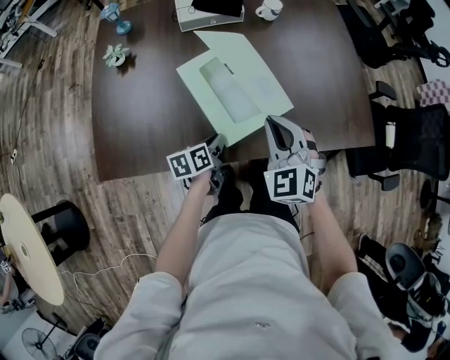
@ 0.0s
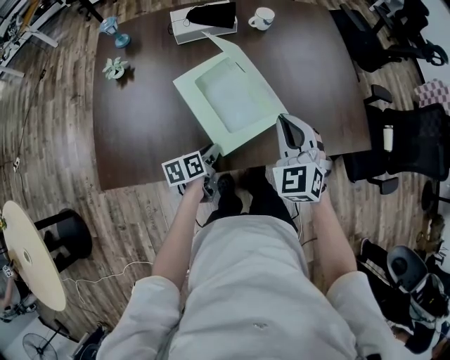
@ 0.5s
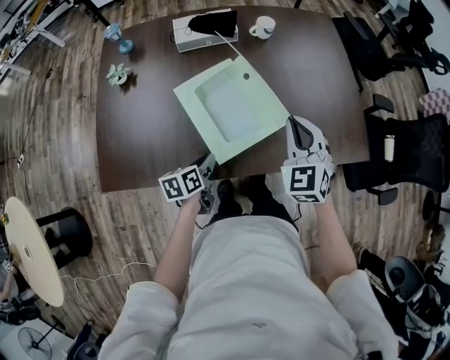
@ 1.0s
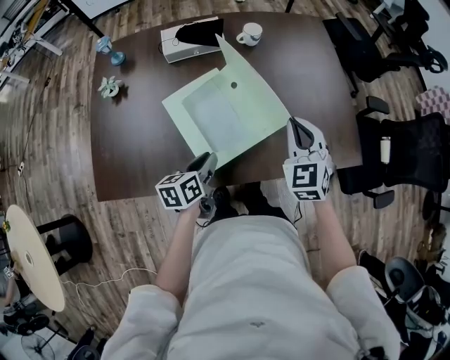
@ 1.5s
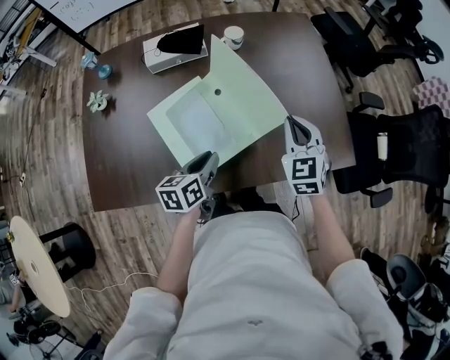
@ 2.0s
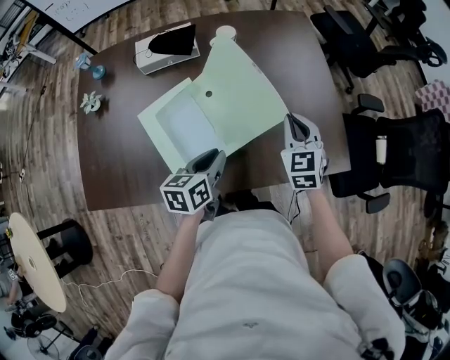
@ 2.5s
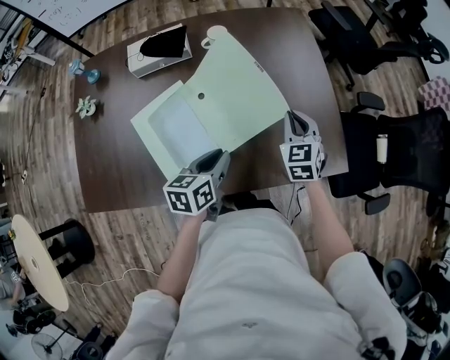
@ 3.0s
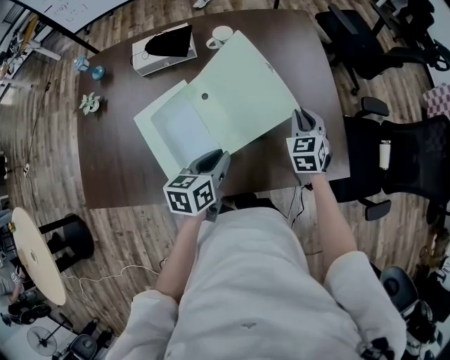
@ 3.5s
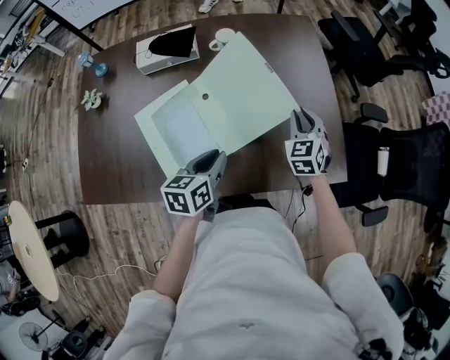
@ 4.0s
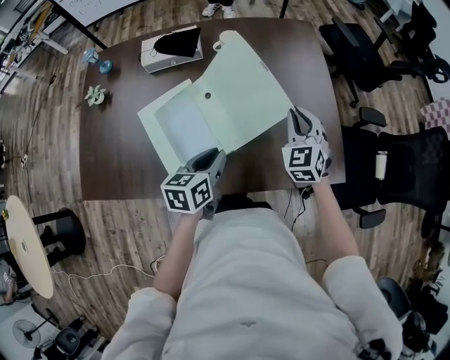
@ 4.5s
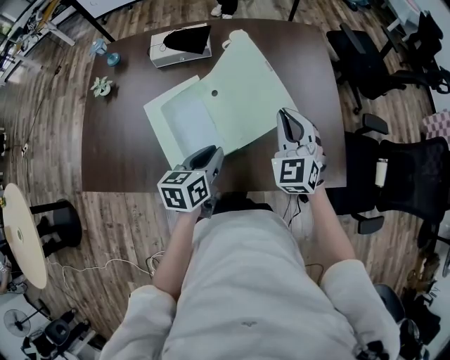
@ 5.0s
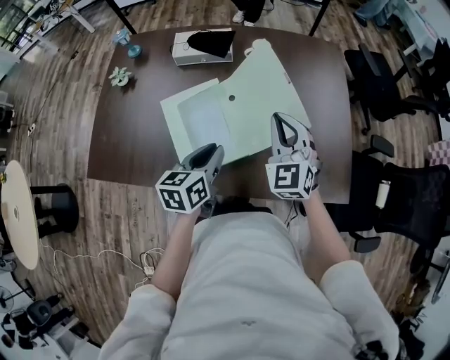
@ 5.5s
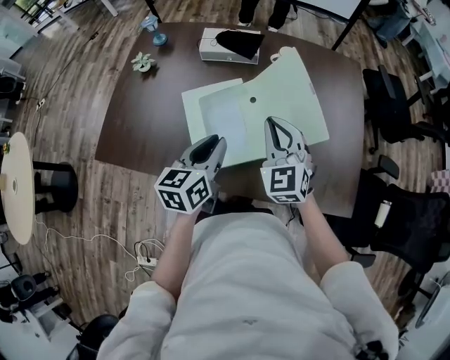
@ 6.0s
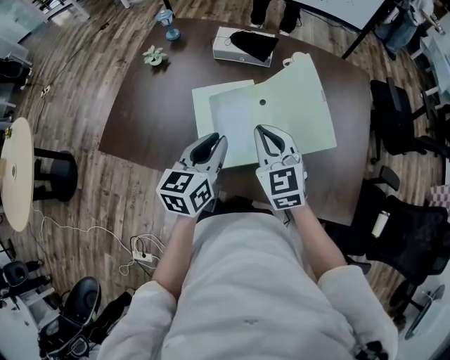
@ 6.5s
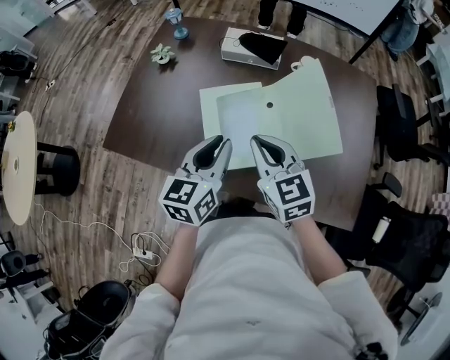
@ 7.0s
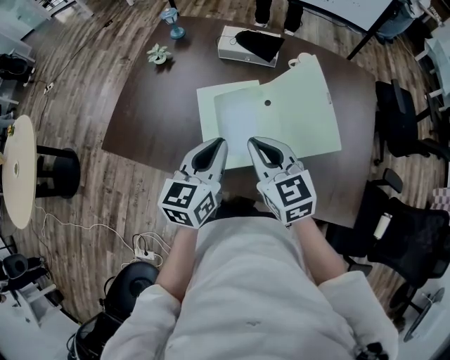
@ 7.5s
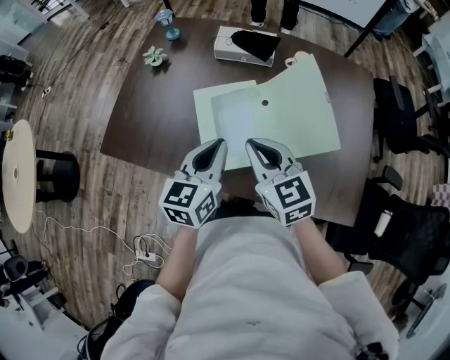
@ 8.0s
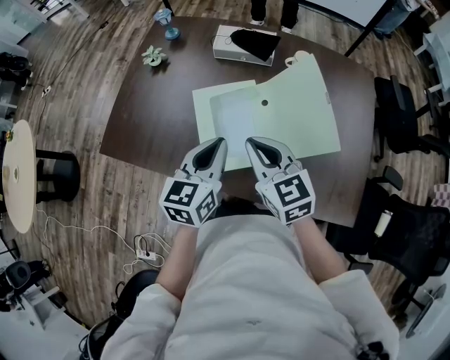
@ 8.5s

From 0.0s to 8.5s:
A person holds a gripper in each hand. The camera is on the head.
From 0.0s to 2.0s: The right gripper heads to the right and forward, covering some 25 cm, and turns by roughly 20 degrees. Meanwhile the left gripper heads upward, to the right and forward, covering some 15 cm.
From 2.0s to 4.0s: The right gripper is displaced forward, to the right and downward by roughly 15 cm; the left gripper shifts about 10 cm to the right.
From 4.0s to 6.5s: The right gripper moves about 30 cm, and rotates about 40 degrees. The left gripper changes place by about 15 cm, and turns by about 30 degrees.
From 6.5s to 8.5s: The grippers move only a little.

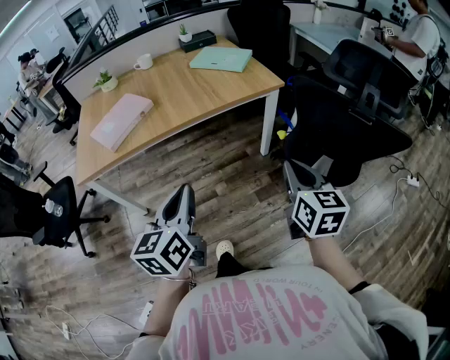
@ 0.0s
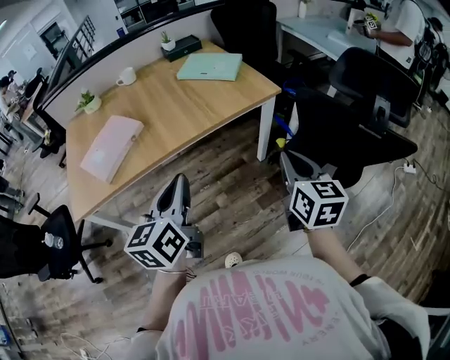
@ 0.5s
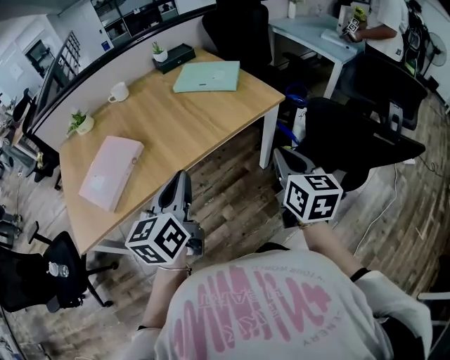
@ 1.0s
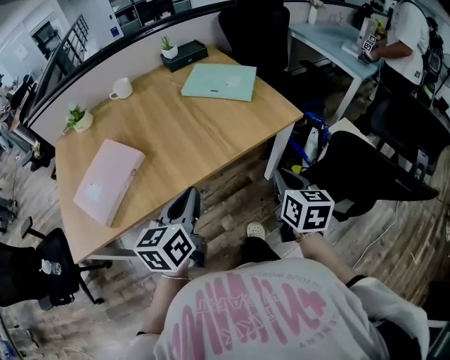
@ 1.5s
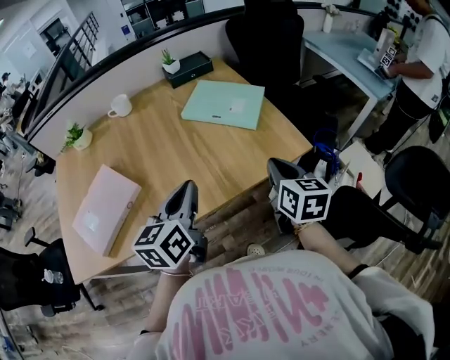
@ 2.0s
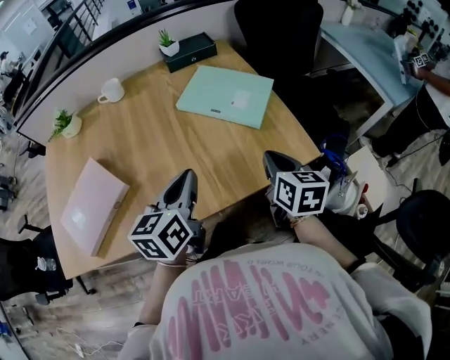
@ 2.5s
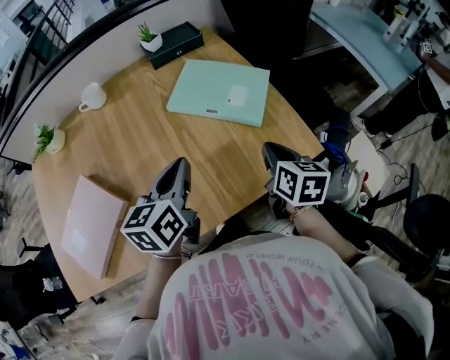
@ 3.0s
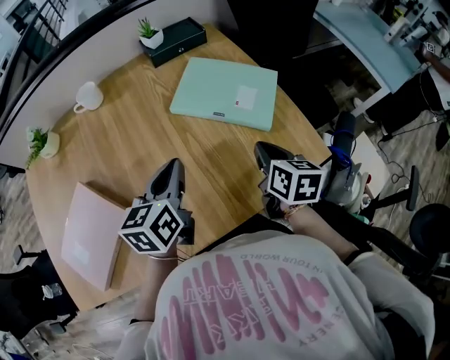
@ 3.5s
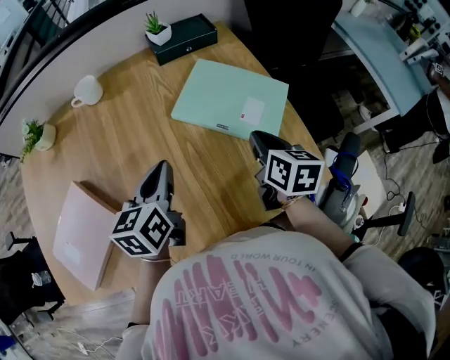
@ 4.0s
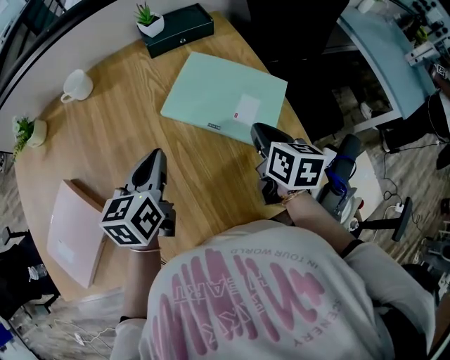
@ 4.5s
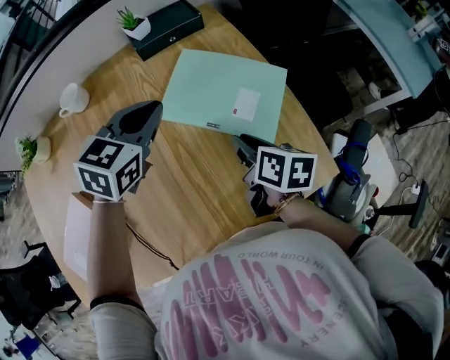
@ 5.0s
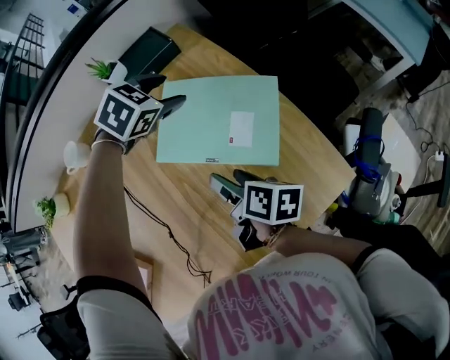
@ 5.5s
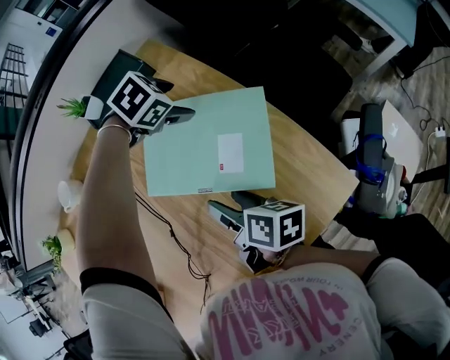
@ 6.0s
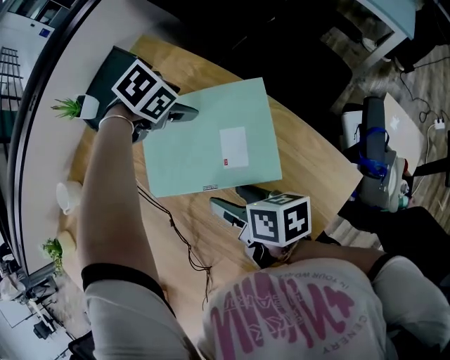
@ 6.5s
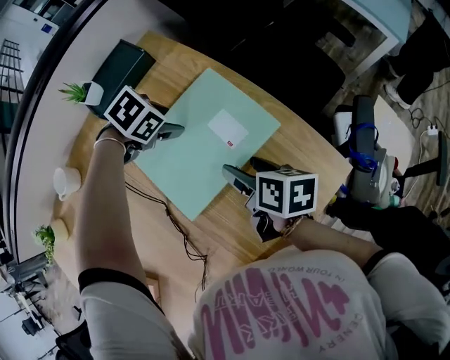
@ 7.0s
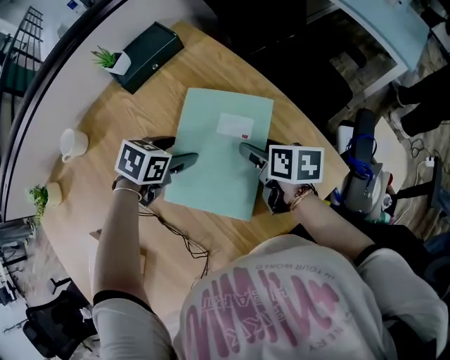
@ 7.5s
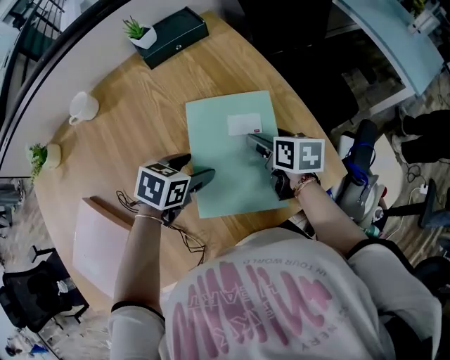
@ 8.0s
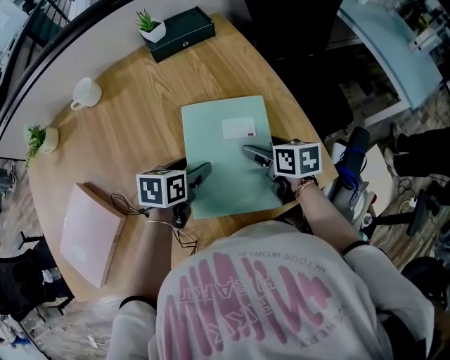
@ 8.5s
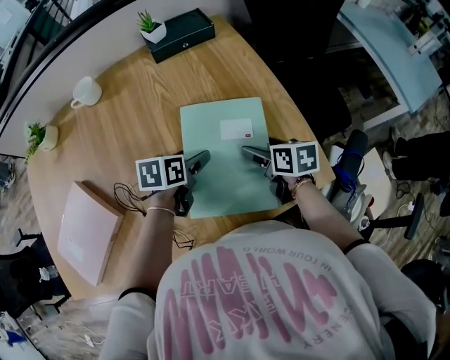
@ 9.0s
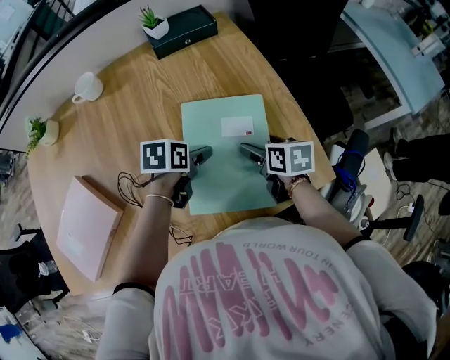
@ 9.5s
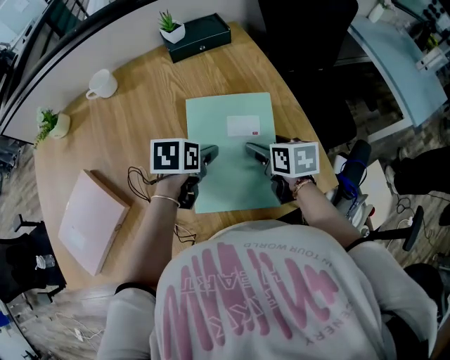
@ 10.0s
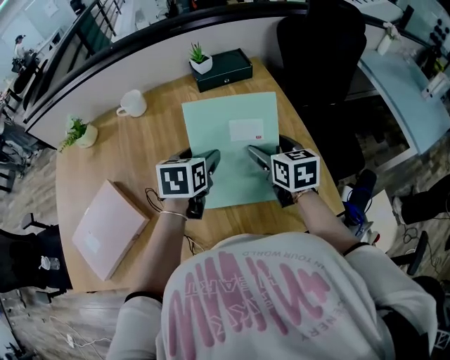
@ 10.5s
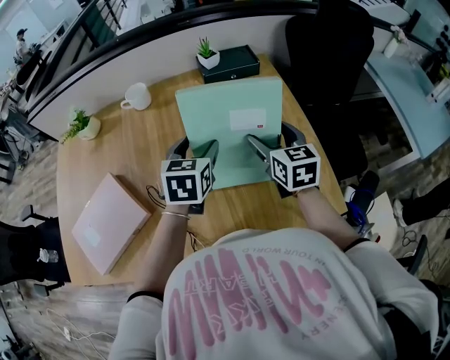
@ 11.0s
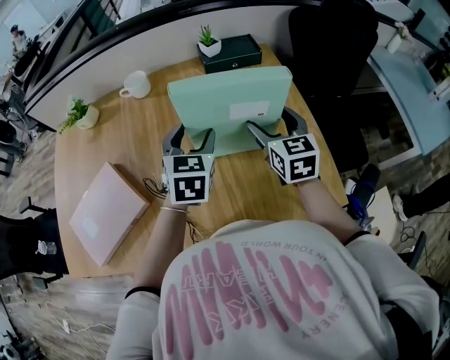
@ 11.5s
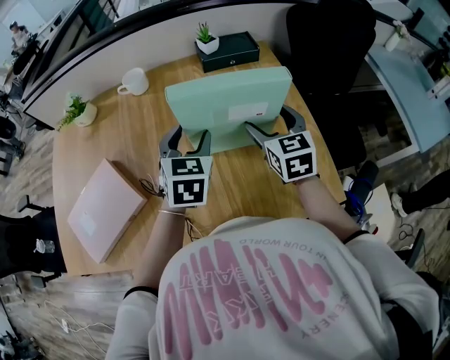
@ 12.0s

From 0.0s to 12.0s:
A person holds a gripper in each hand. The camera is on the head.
From 0.0s to 2.0s: The two grippers travel together, forward, some 50 cm.
From 2.0s to 4.0s: The two grippers go about 25 cm forward.
From 4.0s to 6.0s: The left gripper shifts by about 40 cm, tips its fingers downward by some 50 degrees, and opens. Meanwhile the right gripper goes roughly 10 cm downward, swivels approximately 40 degrees, and opens its fingers.
From 6.0s to 8.0s: The right gripper shifts by some 10 cm, and changes its angle by approximately 30 degrees. The left gripper shifts by about 30 cm, and twists about 40 degrees counterclockwise, seen from behind.
From 8.0s to 10.0s: The left gripper rotates roughly 30 degrees.
From 10.0s to 12.0s: The left gripper heads upward and to the left, covering some 15 cm, and turns by roughly 40 degrees, while the right gripper moves upward, to the left and forward, some 15 cm, and swivels approximately 40 degrees.

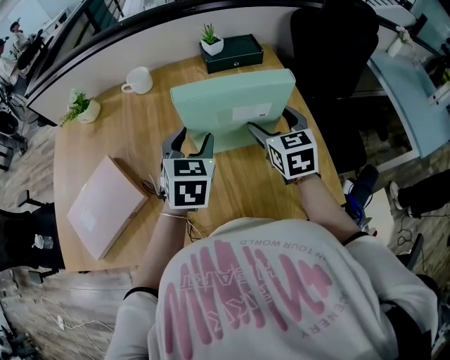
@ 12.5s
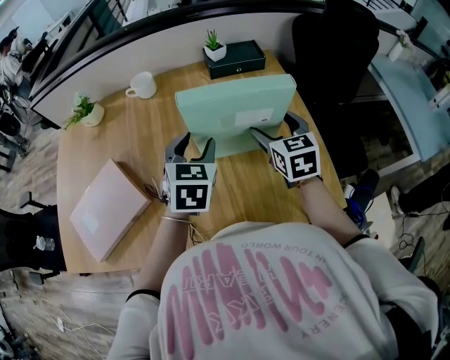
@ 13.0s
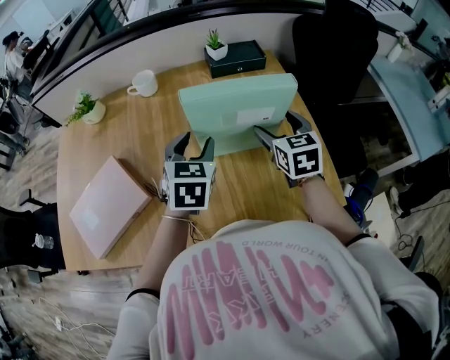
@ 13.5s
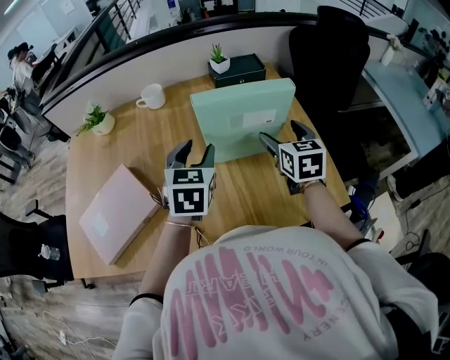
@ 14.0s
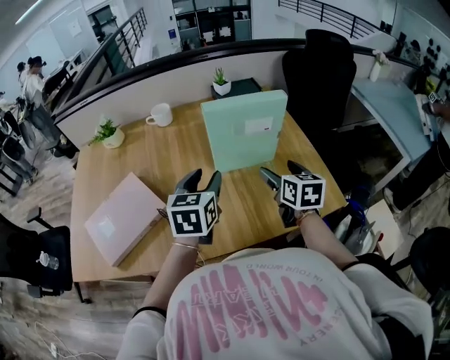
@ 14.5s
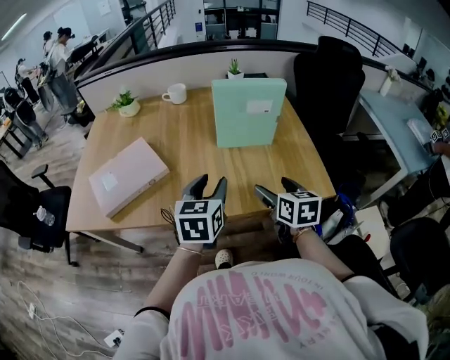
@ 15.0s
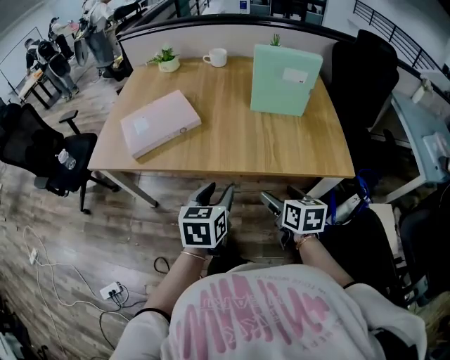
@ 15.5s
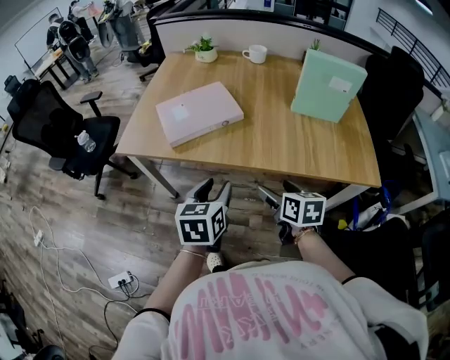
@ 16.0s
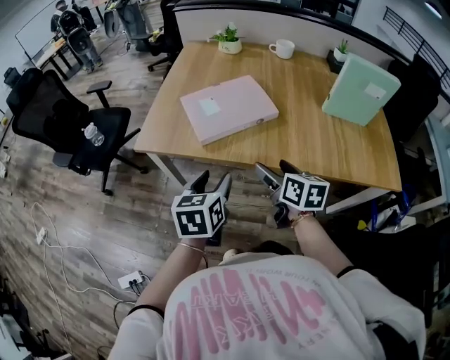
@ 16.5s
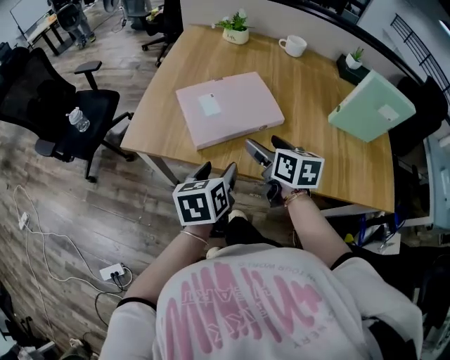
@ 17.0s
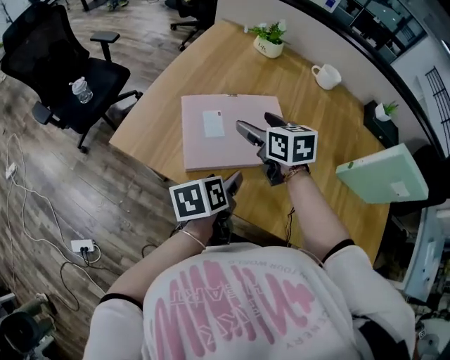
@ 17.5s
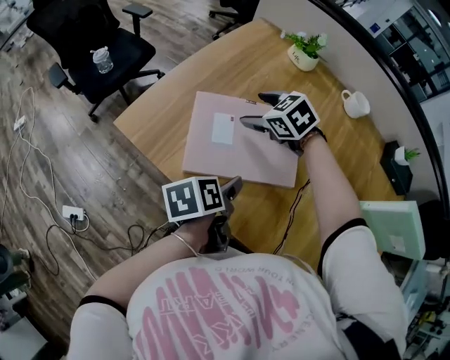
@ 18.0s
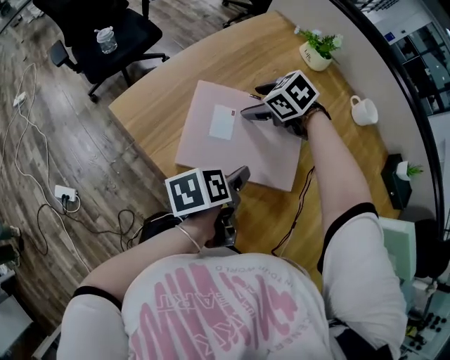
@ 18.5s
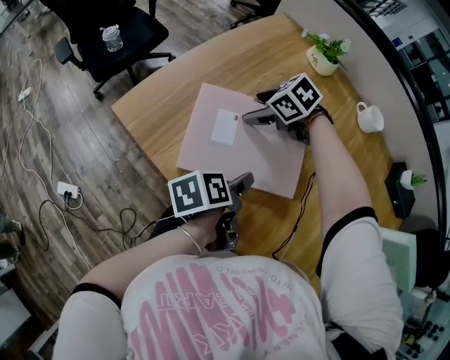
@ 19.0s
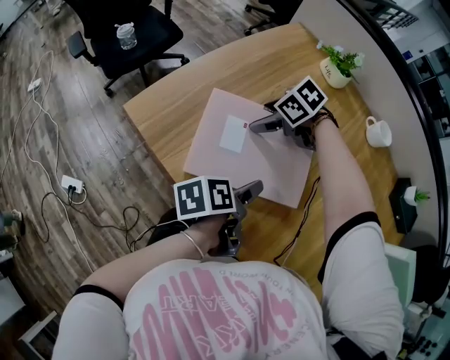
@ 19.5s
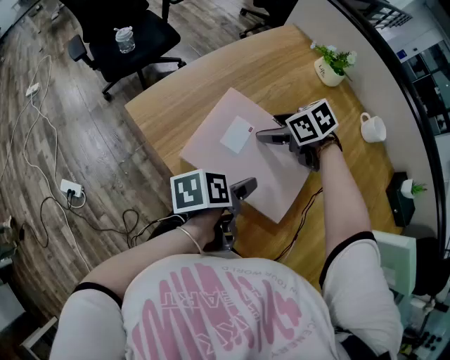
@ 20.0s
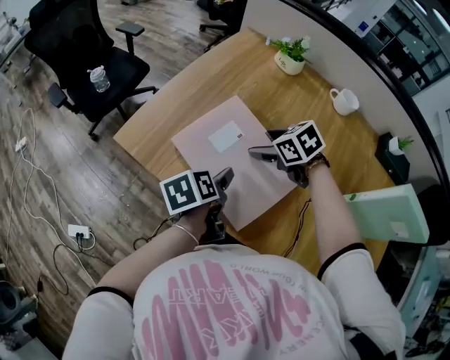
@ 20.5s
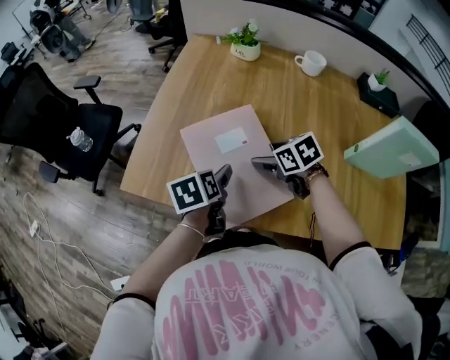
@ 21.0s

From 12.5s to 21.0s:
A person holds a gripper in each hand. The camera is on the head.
From 12.5s to 14.5s: Both grippers travel together backward, about 10 cm. The right gripper rotates approximately 20 degrees.
From 14.5s to 16.5s: The pair of grippers is taken about 40 cm. The left gripper turns by roughly 30 degrees; the right gripper swivels approximately 30 degrees.
From 16.5s to 19.0s: The right gripper moves approximately 40 cm, and points its fingers some 30 degrees further downward, while the left gripper moves some 25 cm, and rolls counterclockwise, seen from behind, by approximately 60 degrees.
From 19.0s to 21.0s: The left gripper ends up approximately 10 cm from where it was, and twists about 40 degrees clockwise, seen from behind, while the right gripper ends up roughly 15 cm from where it was, and rolls clockwise, seen from behind, by approximately 40 degrees.
